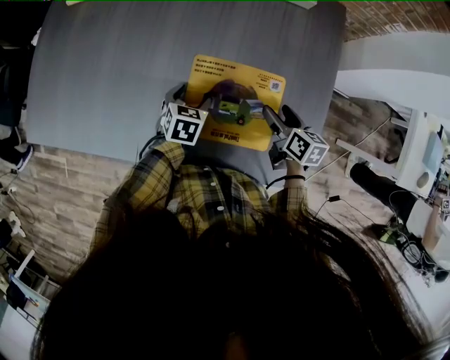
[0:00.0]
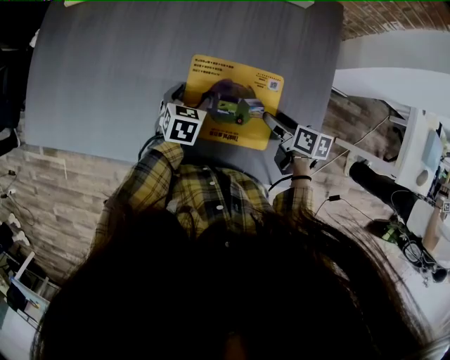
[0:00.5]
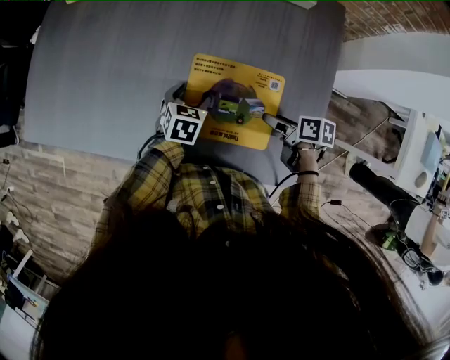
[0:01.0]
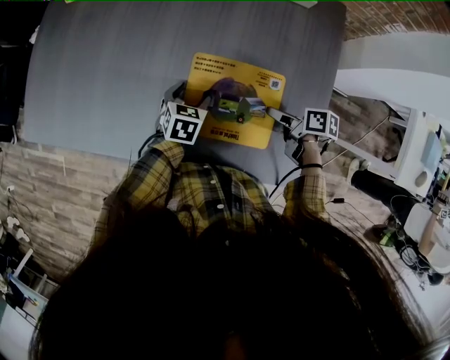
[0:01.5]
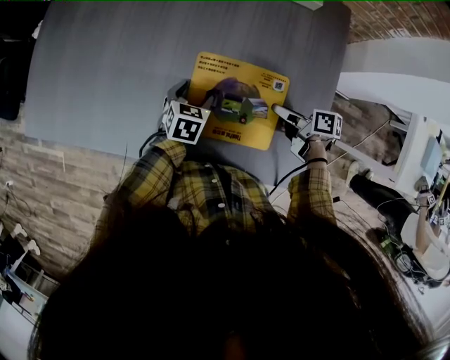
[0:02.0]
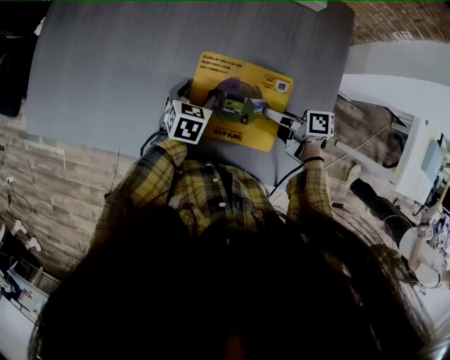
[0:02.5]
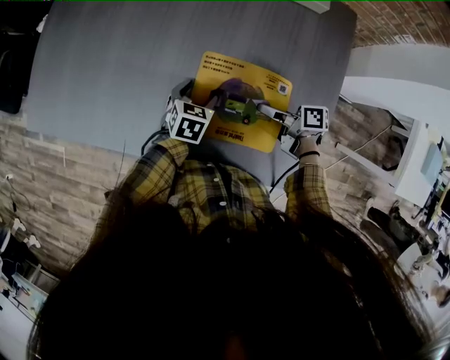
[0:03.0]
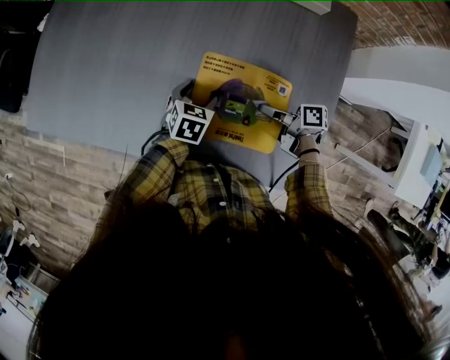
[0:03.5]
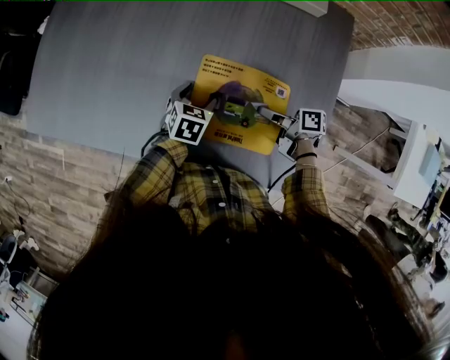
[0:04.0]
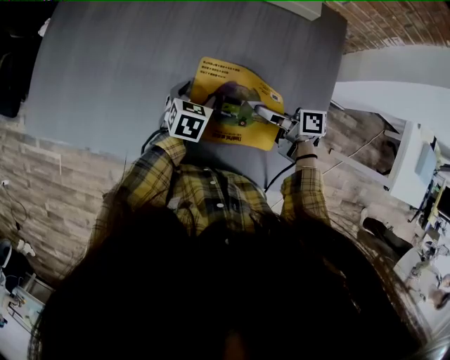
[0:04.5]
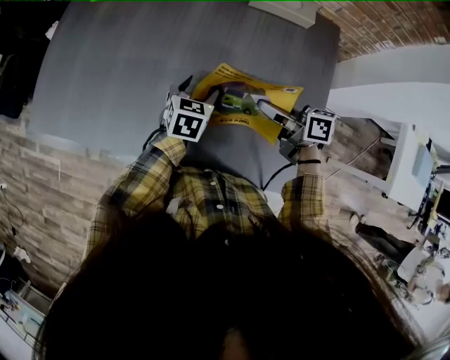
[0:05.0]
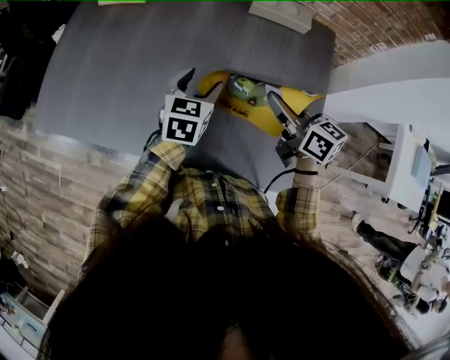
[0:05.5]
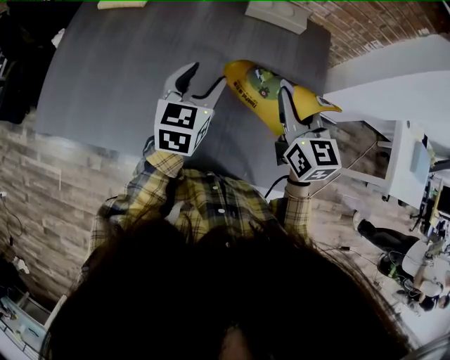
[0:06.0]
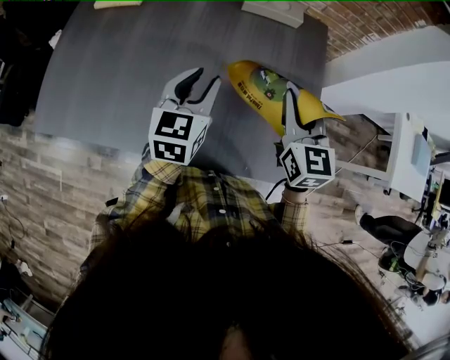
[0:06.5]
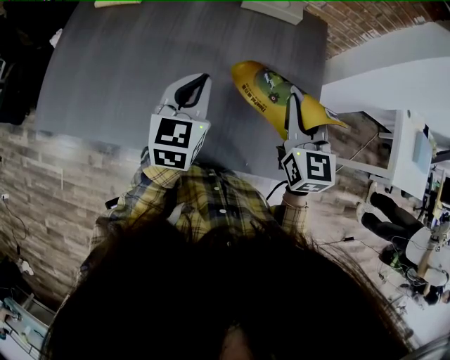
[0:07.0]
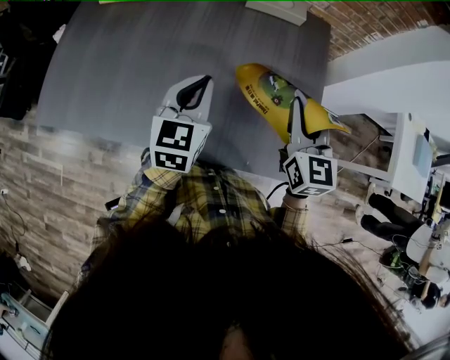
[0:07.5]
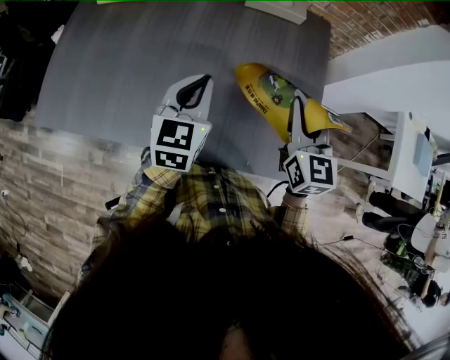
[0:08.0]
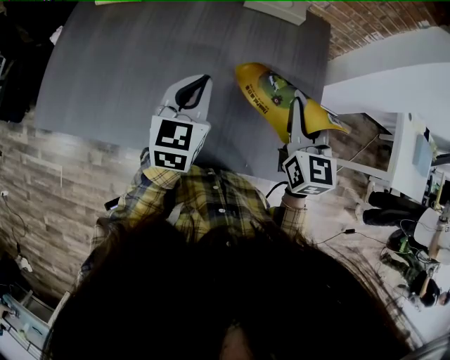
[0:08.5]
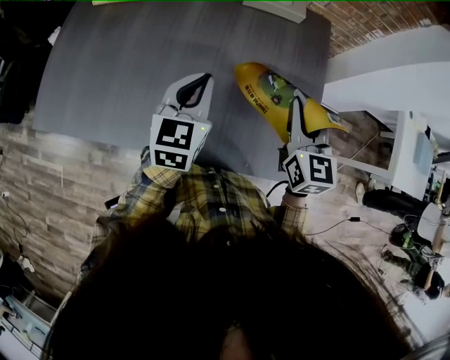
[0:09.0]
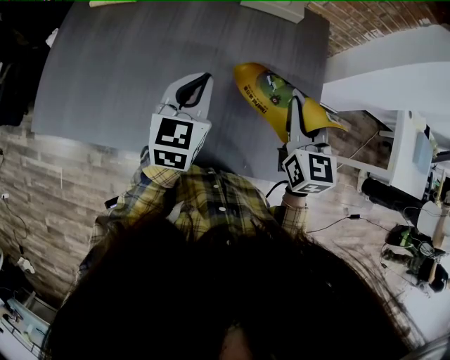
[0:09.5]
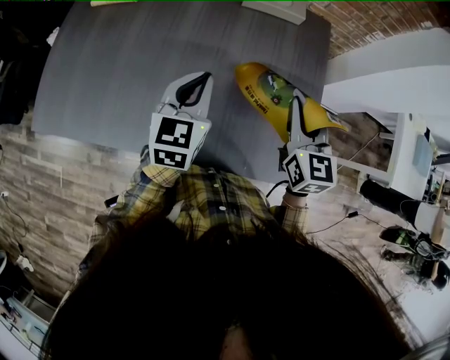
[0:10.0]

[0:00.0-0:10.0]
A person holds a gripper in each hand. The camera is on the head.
0:00.0 to 0:02.0: The right gripper changes its angle by some 30 degrees.
0:02.0 to 0:04.0: The right gripper shifts approximately 5 cm to the left, and closes.
0:04.0 to 0:06.0: The grippers both shift upward by about 25 cm. The right gripper turns by approximately 80 degrees. The left gripper points its fingers some 30 degrees further upward.
0:06.0 to 0:08.0: The left gripper is displaced backward by approximately 5 cm, and closes. The right gripper moves approximately 5 cm.
0:08.0 to 0:10.0: The grippers make only small movements.

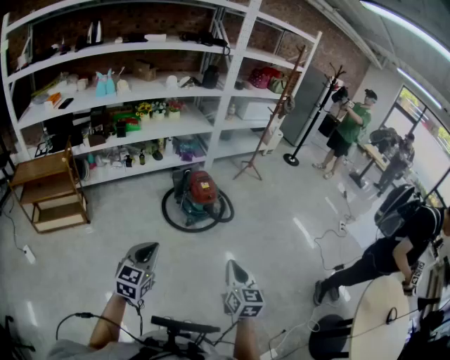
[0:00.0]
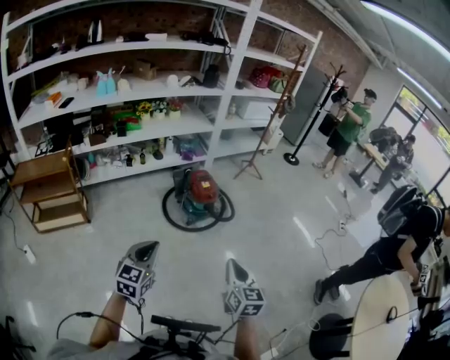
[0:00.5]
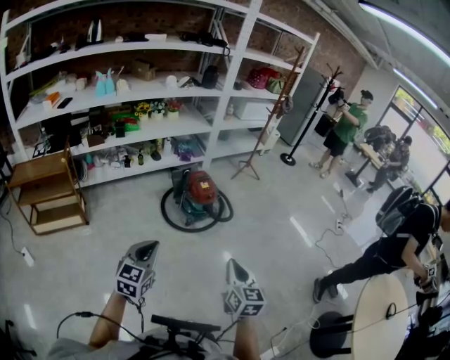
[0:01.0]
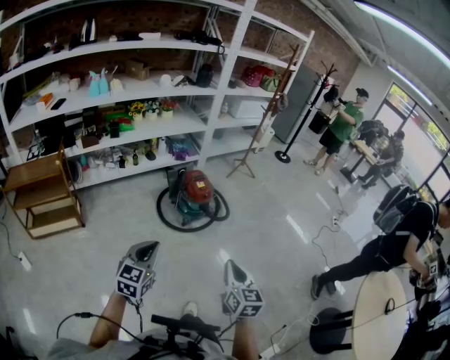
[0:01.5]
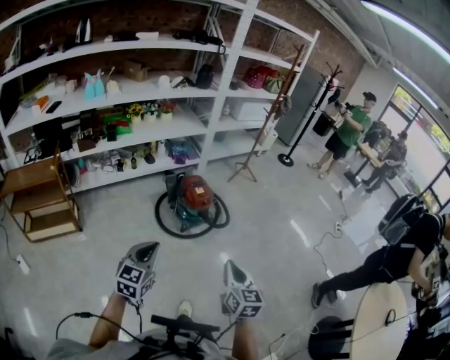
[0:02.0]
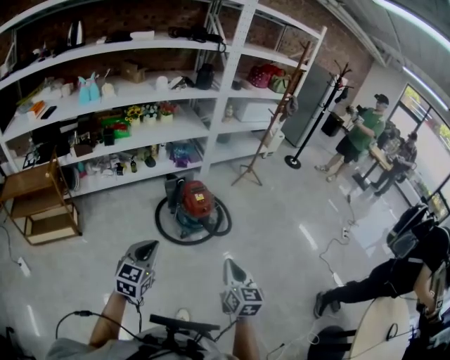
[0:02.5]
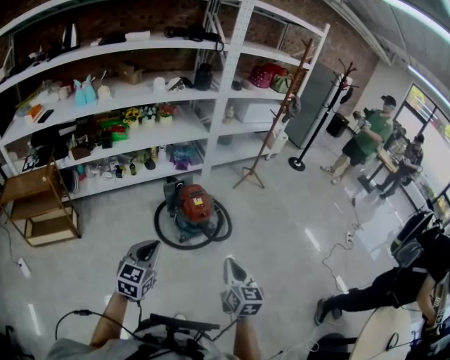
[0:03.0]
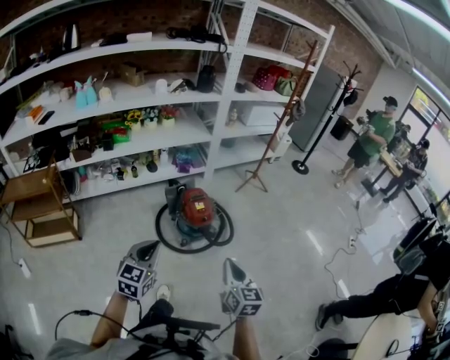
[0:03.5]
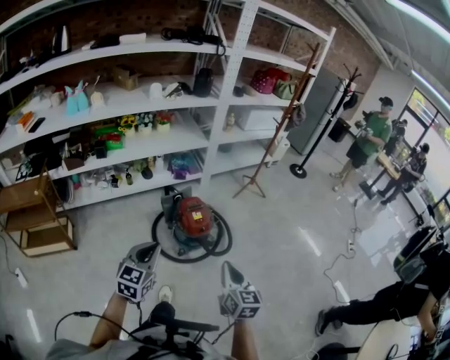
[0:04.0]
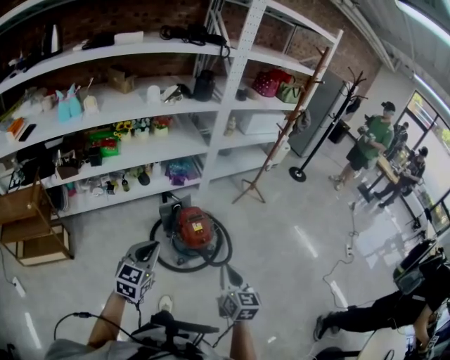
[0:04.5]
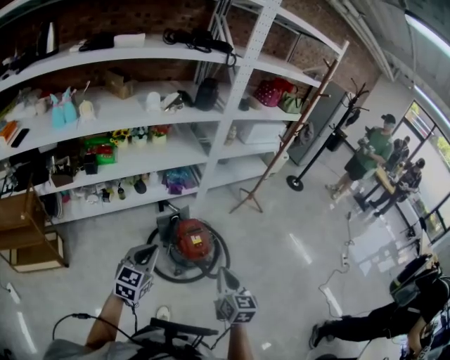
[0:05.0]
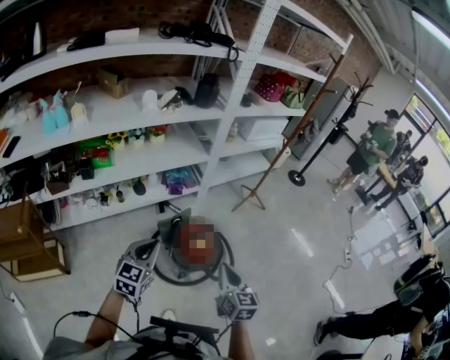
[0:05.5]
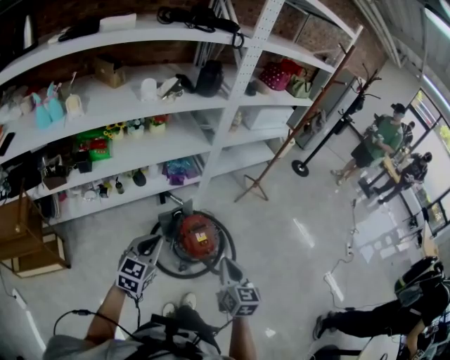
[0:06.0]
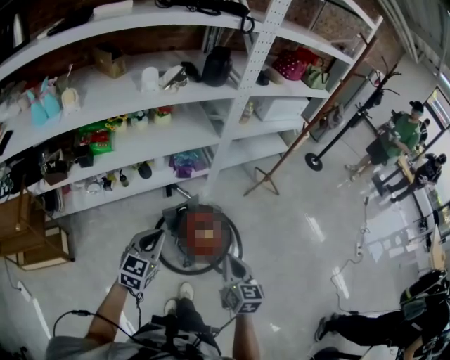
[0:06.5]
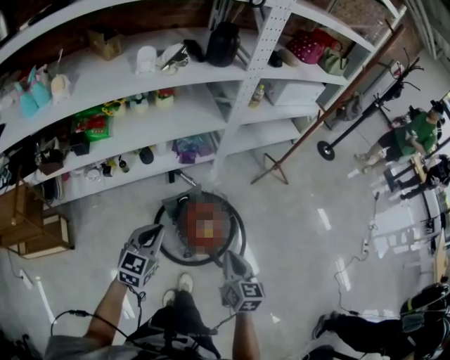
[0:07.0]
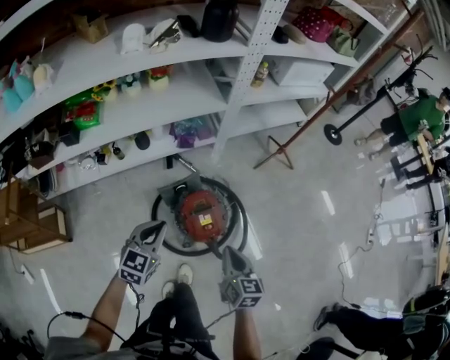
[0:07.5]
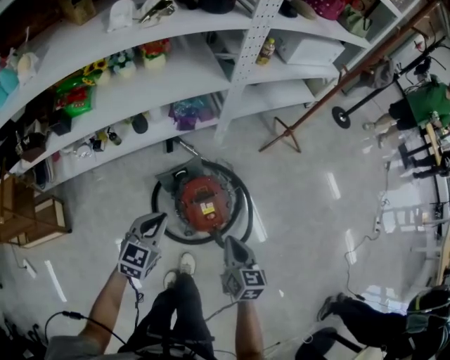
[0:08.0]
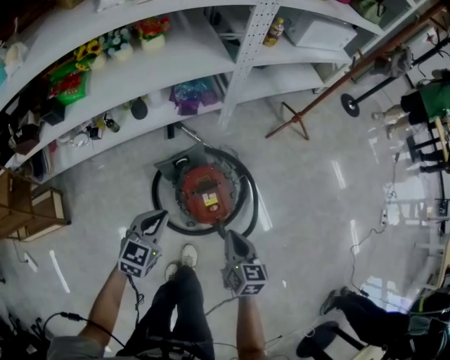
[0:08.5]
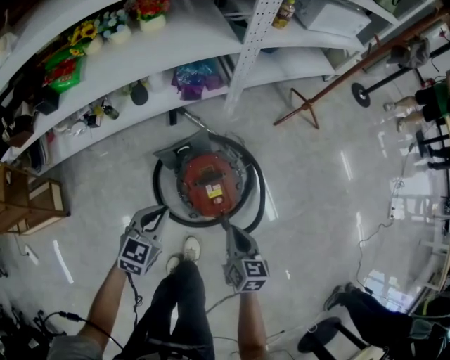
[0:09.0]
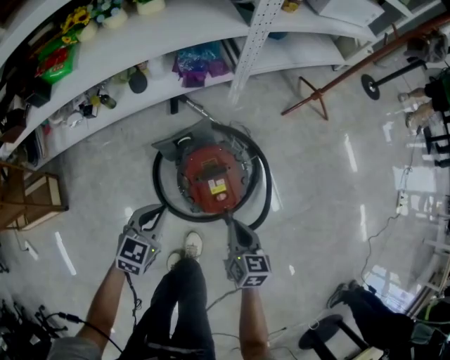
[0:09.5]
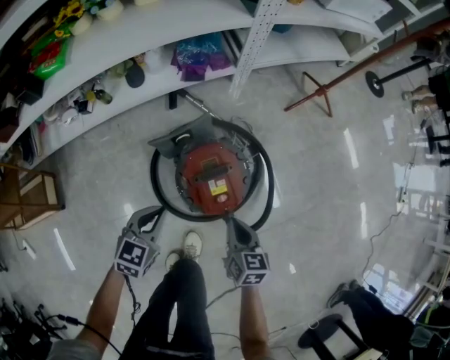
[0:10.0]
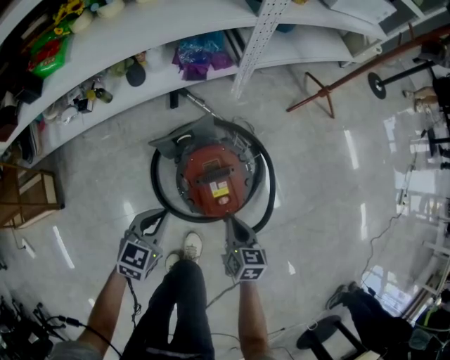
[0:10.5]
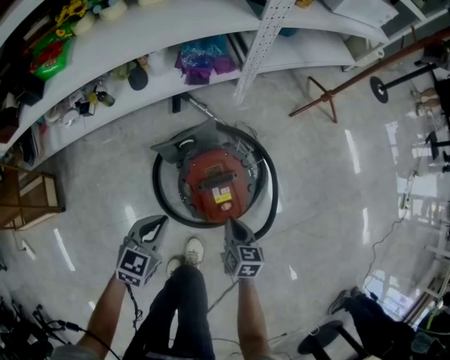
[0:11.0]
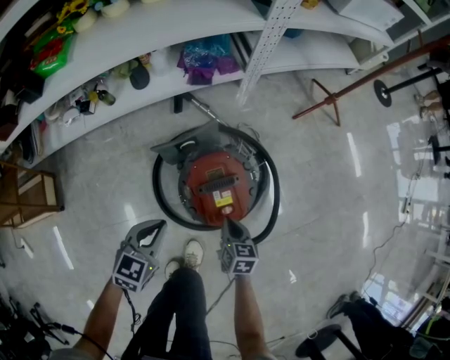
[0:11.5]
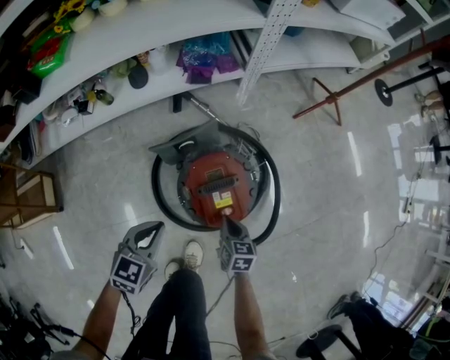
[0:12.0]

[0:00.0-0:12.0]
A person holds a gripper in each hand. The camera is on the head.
0:00.0 to 0:02.0: The grippers both shift forward by roughly 10 cm.
0:02.0 to 0:04.0: The grippers both shift forward by roughly 25 cm.
0:04.0 to 0:06.0: The right gripper is displaced forward and to the left by roughly 30 cm. The left gripper goes some 30 cm forward.
0:06.0 to 0:08.0: Both grippers travel together downward and forward, about 25 cm.
0:08.0 to 0:10.0: The two grippers go approximately 20 cm downward.
0:10.0 to 0:12.0: The right gripper moves downward, about 15 cm.

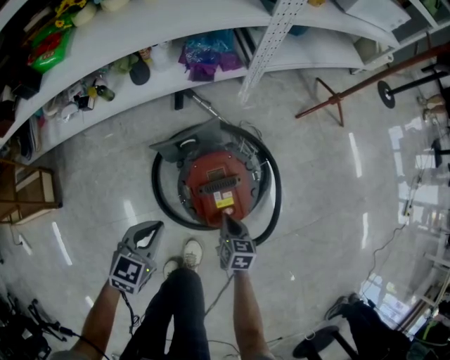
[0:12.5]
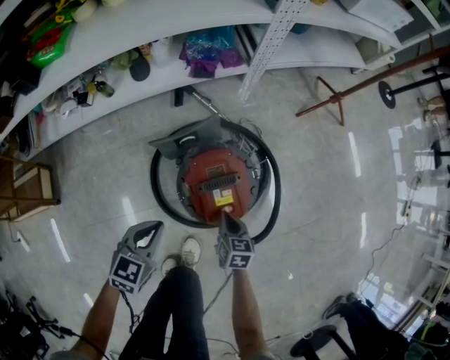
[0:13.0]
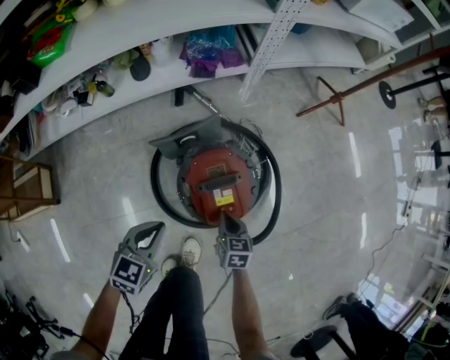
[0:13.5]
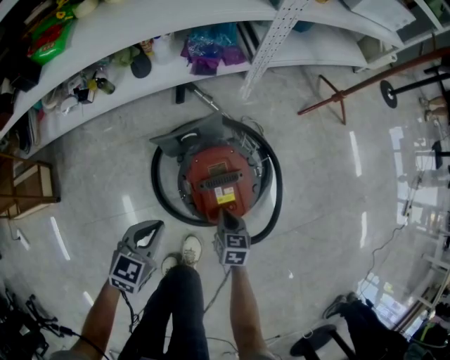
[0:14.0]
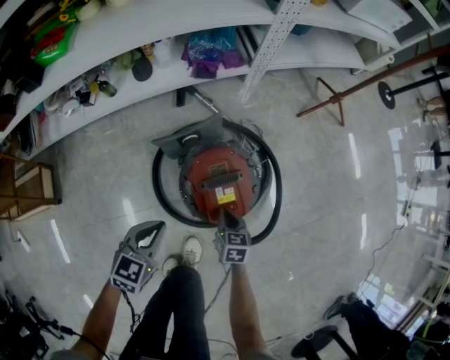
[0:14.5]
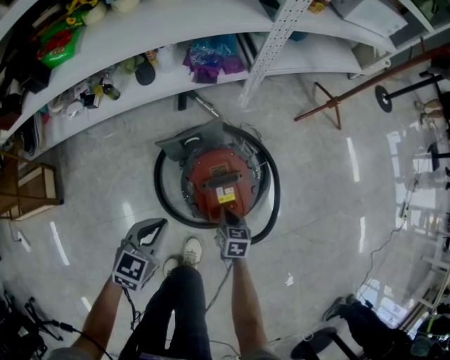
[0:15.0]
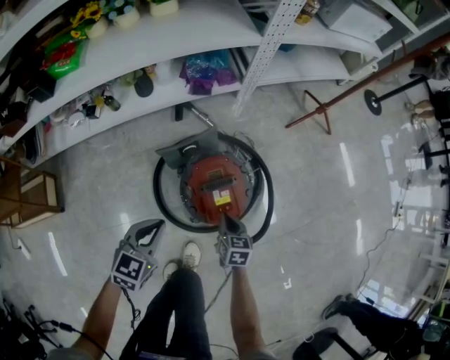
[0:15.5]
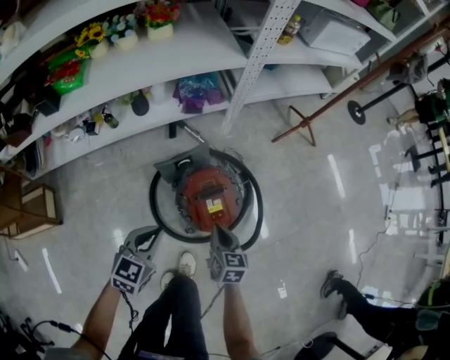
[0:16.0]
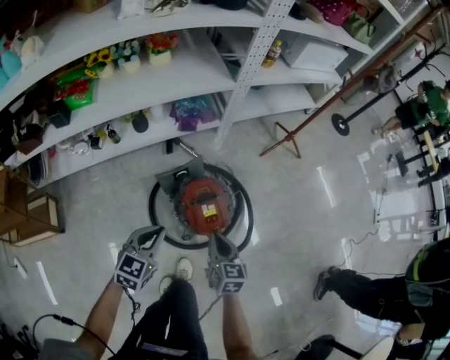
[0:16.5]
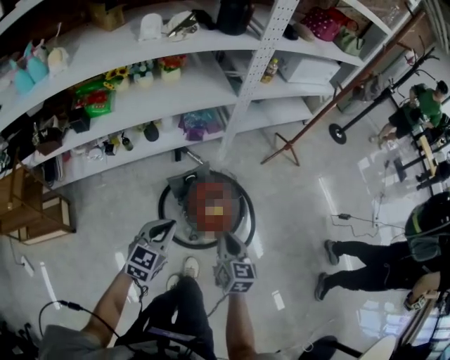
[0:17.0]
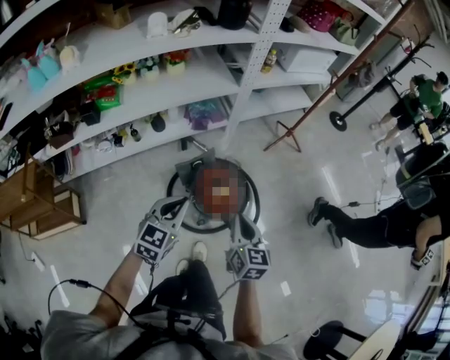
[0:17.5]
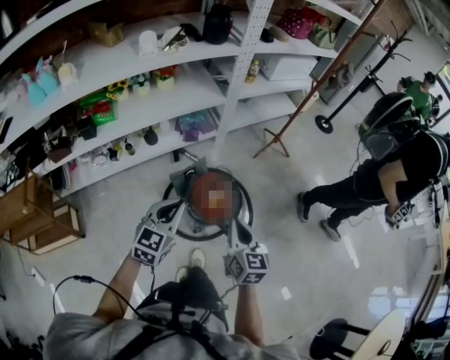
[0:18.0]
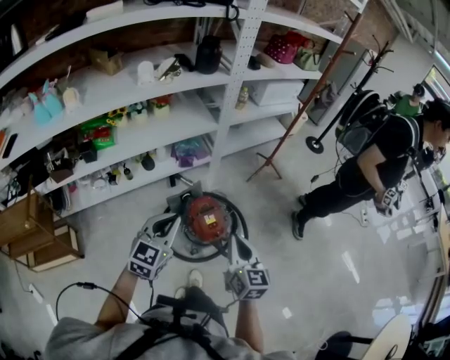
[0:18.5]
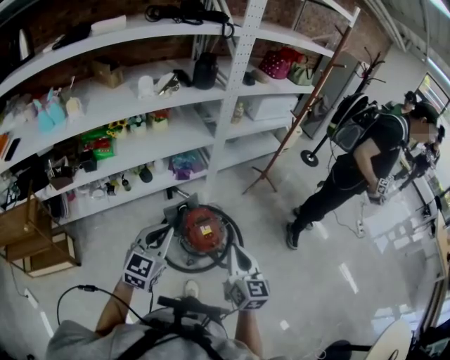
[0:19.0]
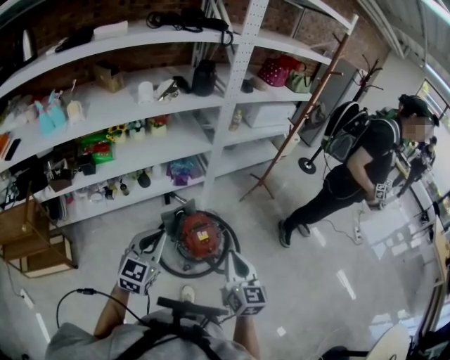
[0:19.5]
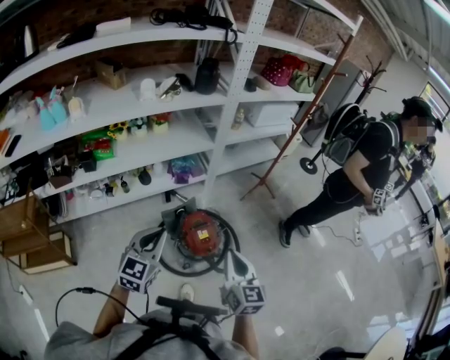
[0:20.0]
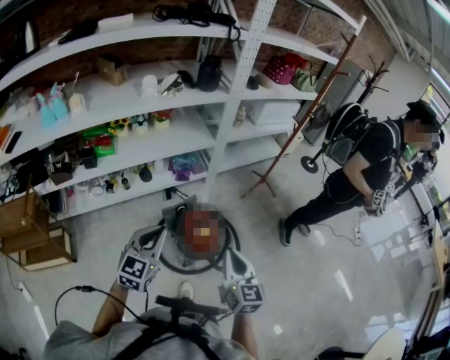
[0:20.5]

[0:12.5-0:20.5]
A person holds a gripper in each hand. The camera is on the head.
0:12.5 to 0:14.5: There are only small adjustments of the grippers.
0:14.5 to 0:16.5: The right gripper travels upward by approximately 30 cm, while the left gripper goes about 20 cm upward.
0:16.5 to 0:18.5: The left gripper is displaced upward by approximately 25 cm, while the right gripper moves upward and backward, about 30 cm.
0:18.5 to 0:20.5: The grippers move only a little.
